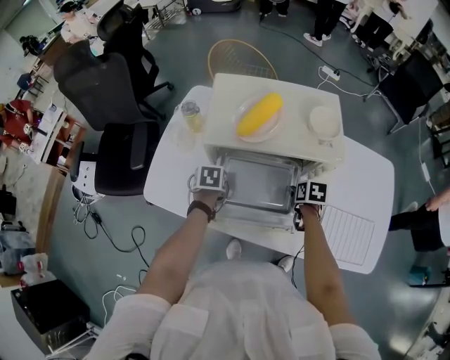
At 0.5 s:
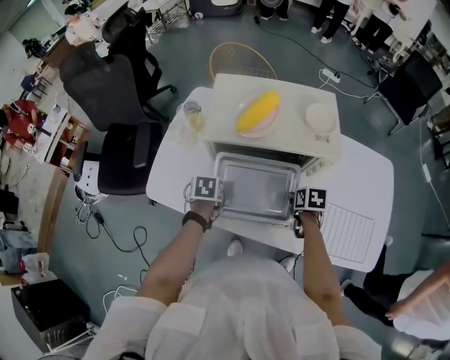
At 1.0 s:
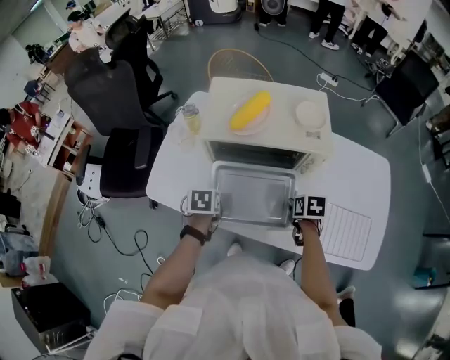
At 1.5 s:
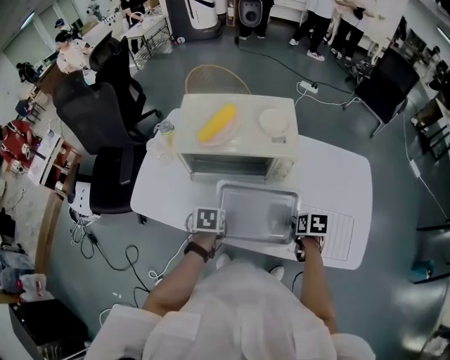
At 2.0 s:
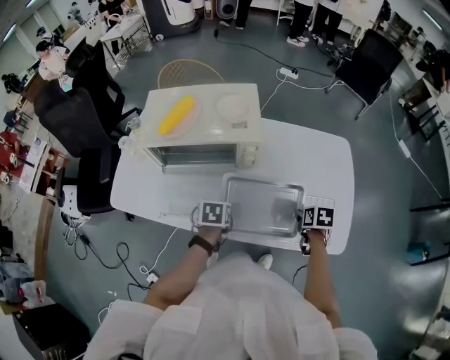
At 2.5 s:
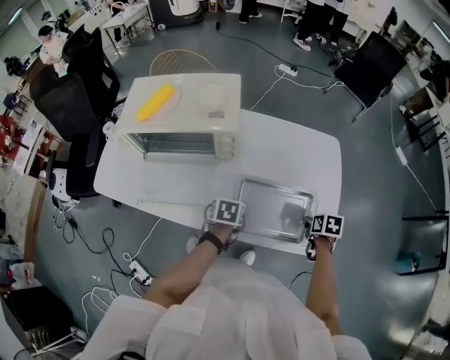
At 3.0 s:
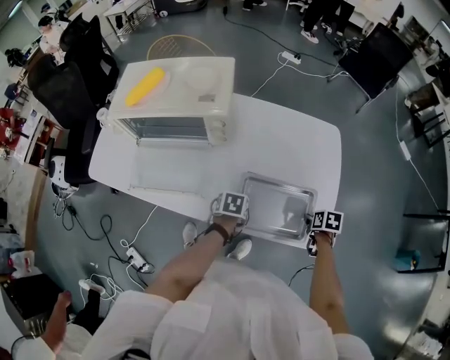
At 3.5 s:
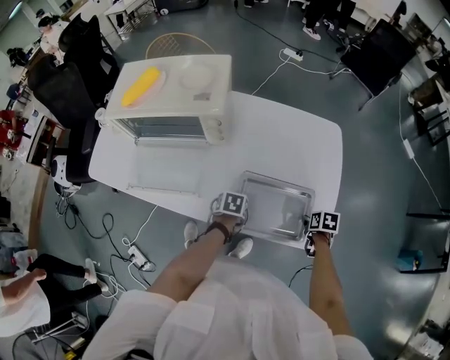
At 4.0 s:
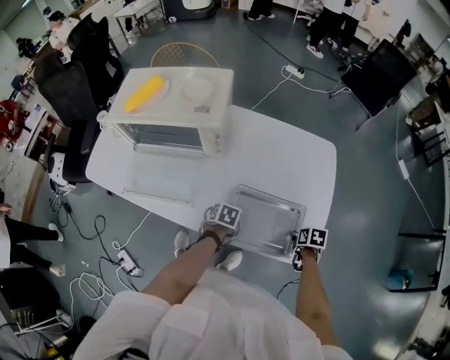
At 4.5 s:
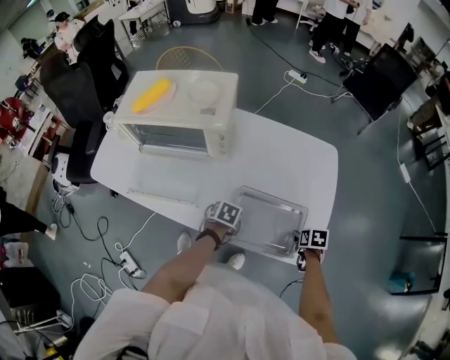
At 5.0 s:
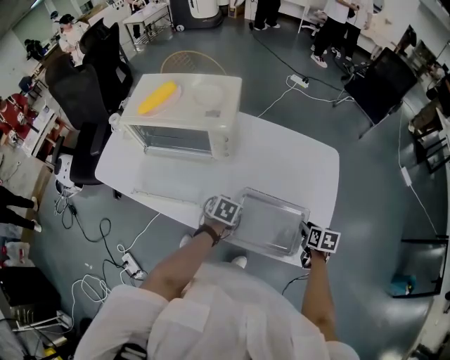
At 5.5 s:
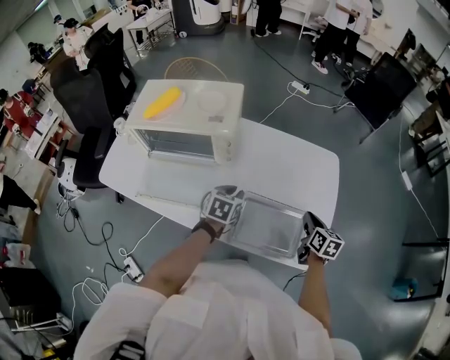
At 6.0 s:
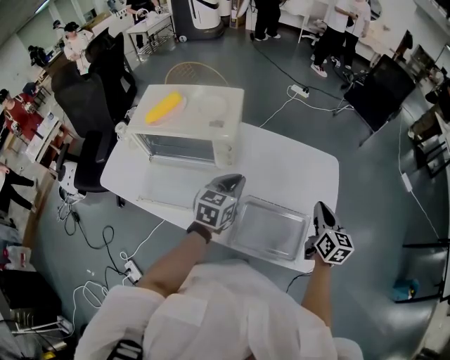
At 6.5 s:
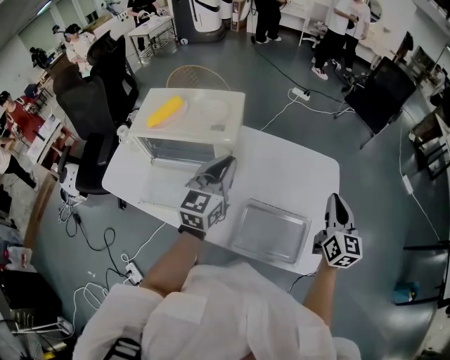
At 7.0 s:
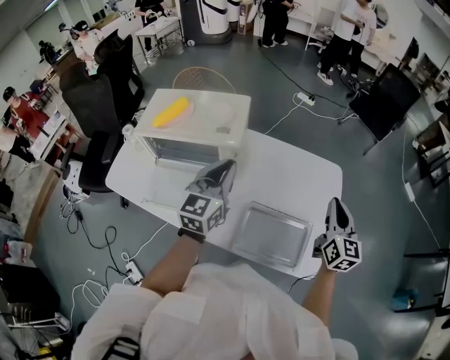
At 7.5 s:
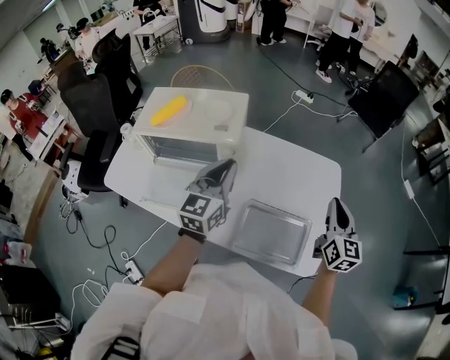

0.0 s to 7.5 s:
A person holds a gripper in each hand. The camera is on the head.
0.0 to 2.0 s: The grippers both shift to the right and backward by roughly 30 cm.
2.0 to 4.0 s: Both grippers travel together to the right and downward, roughly 20 cm.
4.0 to 5.5 s: The grippers both shift upward and forward by roughly 15 cm. The left gripper changes its angle by some 30 degrees; the right gripper points its fingers some 40 degrees further upward.
5.5 to 7.5 s: The grippers both shift upward by about 20 cm. The right gripper changes its angle by about 30 degrees; the left gripper tilts its fingers some 40 degrees upward.

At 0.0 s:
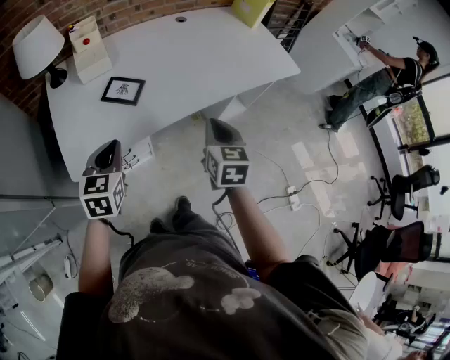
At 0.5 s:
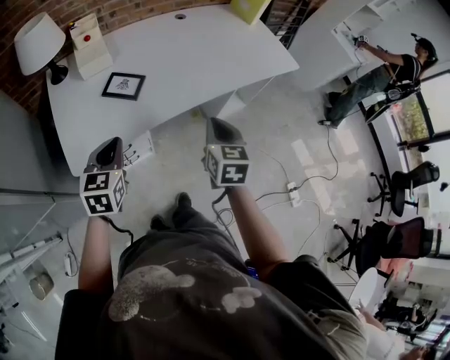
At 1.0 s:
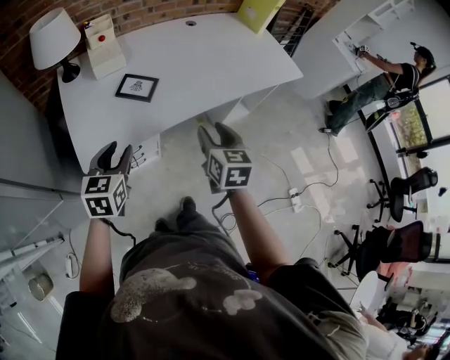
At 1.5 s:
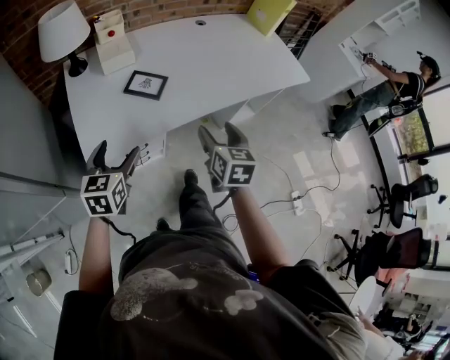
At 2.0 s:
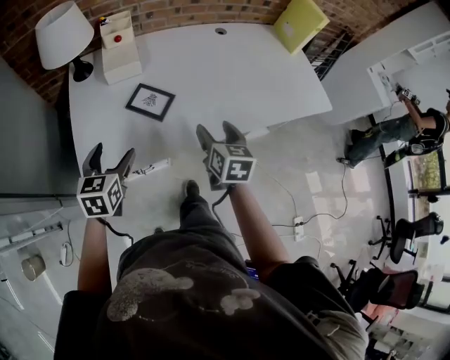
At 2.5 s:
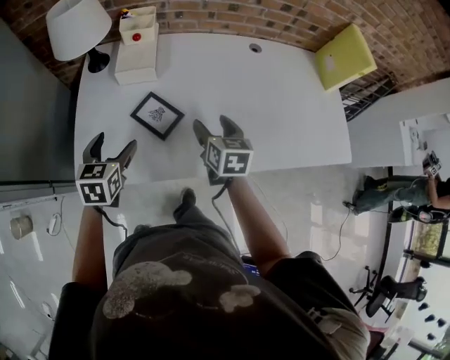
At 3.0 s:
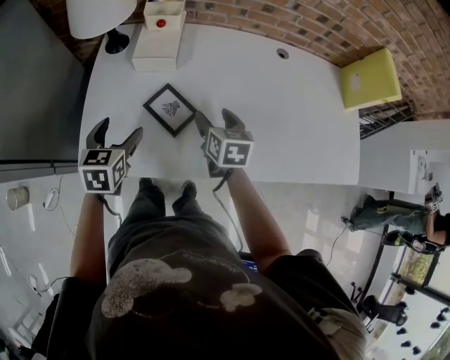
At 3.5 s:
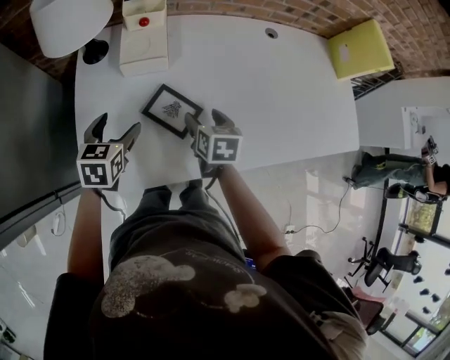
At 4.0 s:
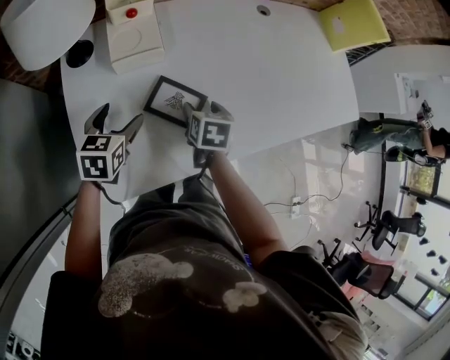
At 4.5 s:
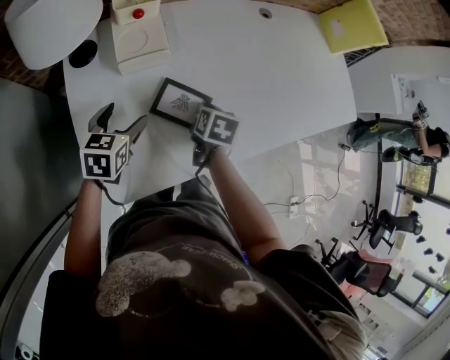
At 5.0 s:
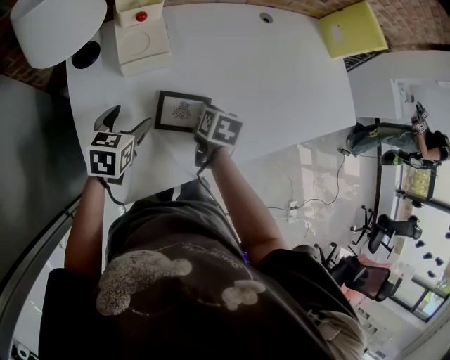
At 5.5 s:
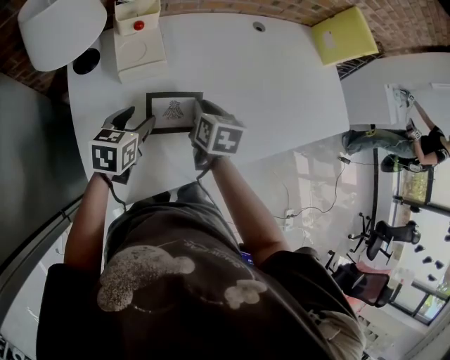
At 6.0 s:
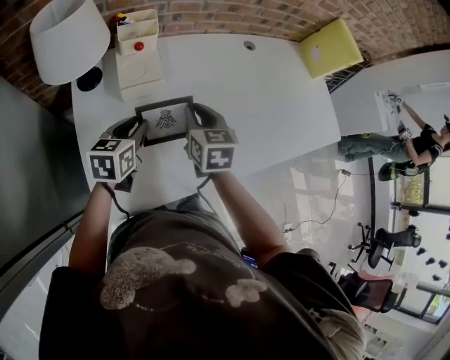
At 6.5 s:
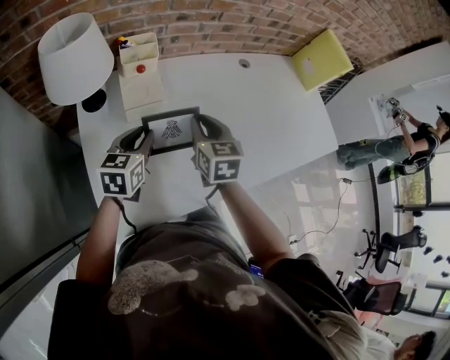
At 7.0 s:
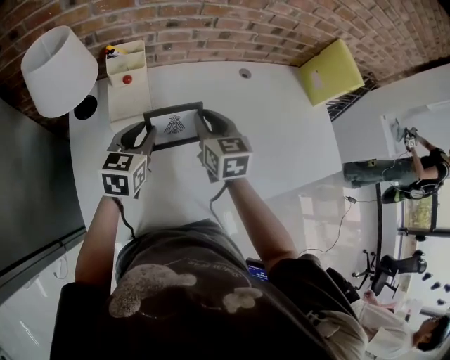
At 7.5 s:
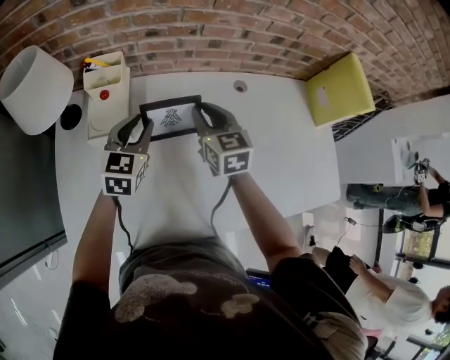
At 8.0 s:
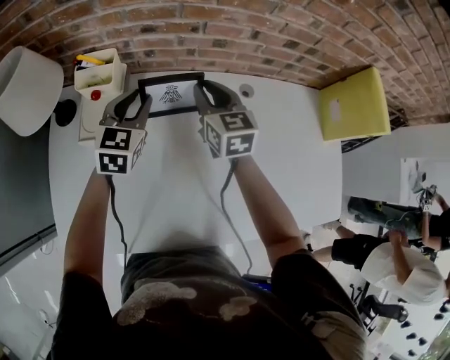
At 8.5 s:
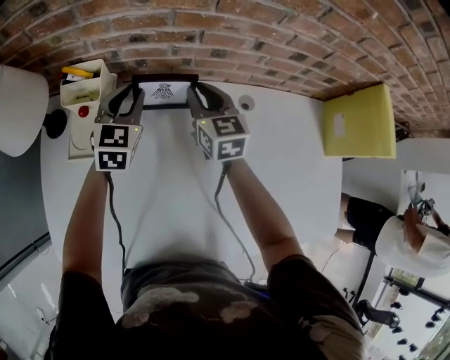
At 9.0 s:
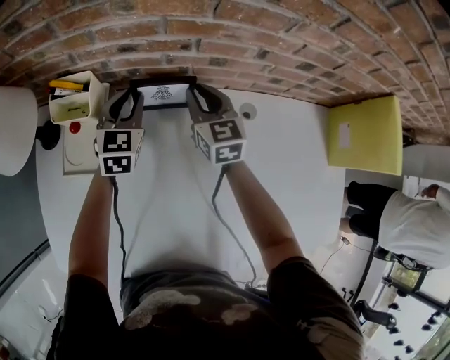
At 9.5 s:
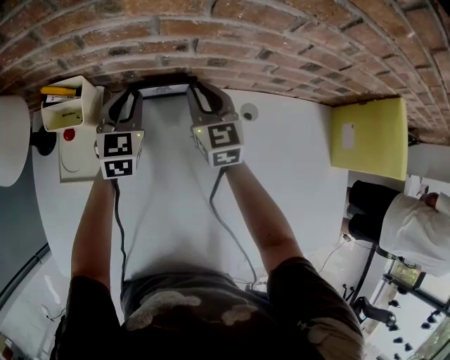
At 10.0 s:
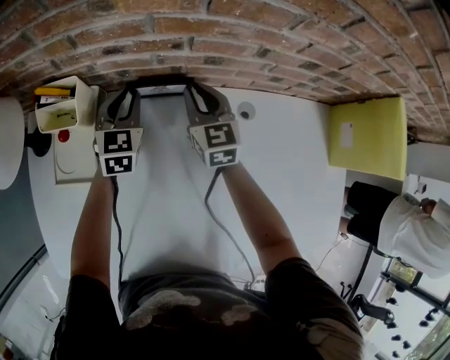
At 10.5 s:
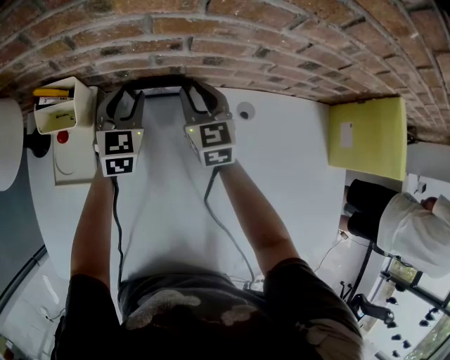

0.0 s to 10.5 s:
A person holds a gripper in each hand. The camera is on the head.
0.0 to 2.0 s: The right gripper goes some 15 cm forward and to the left, and opens up. Meanwhile the left gripper goes some 10 cm to the left and forward, and opens.
2.0 to 4.0 s: The right gripper ends up approximately 25 cm from where it was, and rotates roughly 20 degrees, while the left gripper ends up some 20 cm from where it was.
4.0 to 6.5 s: The right gripper shifts some 15 cm upward, changes its angle by some 30 degrees, and closes its fingers, while the left gripper shifts approximately 10 cm upward, and closes.
6.5 to 8.5 s: The right gripper moves some 30 cm, and rotates some 30 degrees, while the left gripper shifts by roughly 30 cm, and changes its angle by approximately 30 degrees.
8.5 to 10.5 s: The left gripper goes approximately 10 cm downward and forward. Meanwhile the right gripper shifts roughly 5 cm forward and downward.

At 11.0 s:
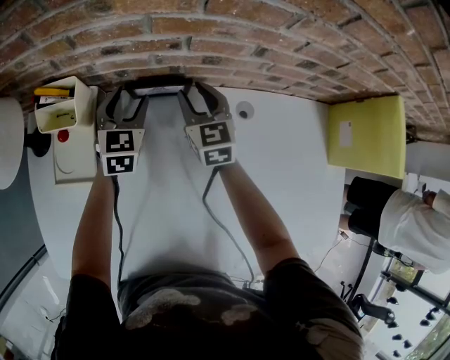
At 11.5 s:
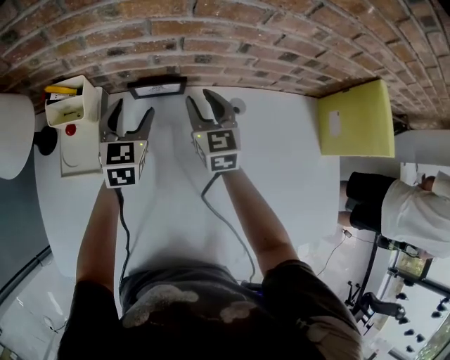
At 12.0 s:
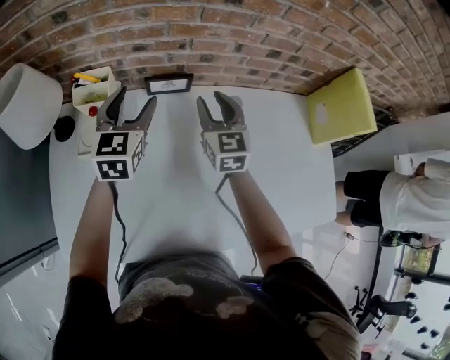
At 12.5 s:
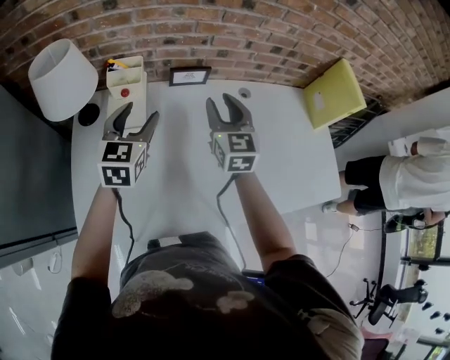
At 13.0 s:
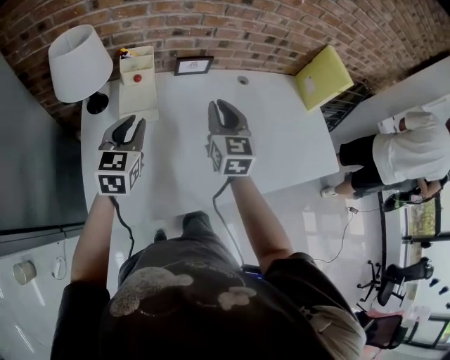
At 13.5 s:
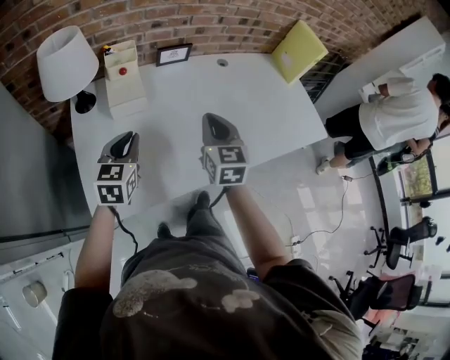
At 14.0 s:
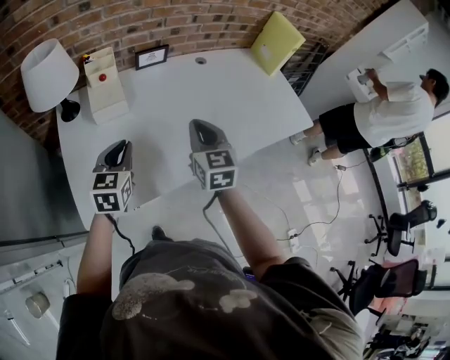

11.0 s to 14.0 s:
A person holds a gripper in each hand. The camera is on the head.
11.0 to 12.5 s: The two grippers go about 25 cm backward and upward.
12.5 to 14.0 s: Both grippers move backward, approximately 25 cm. The right gripper closes its fingers; the left gripper closes up.

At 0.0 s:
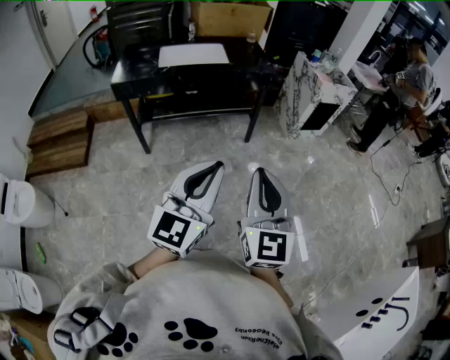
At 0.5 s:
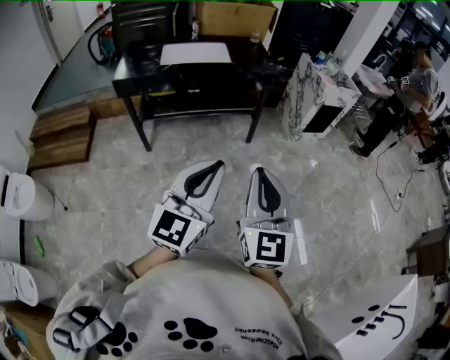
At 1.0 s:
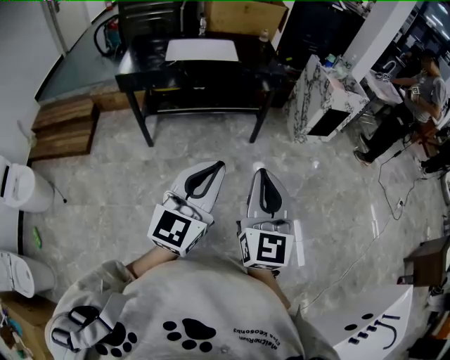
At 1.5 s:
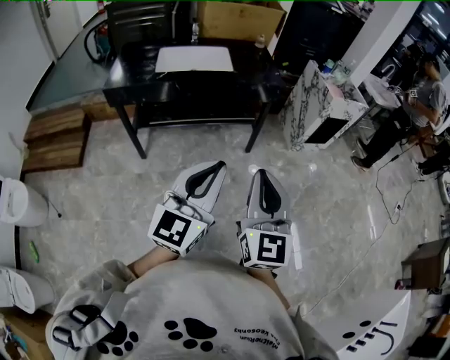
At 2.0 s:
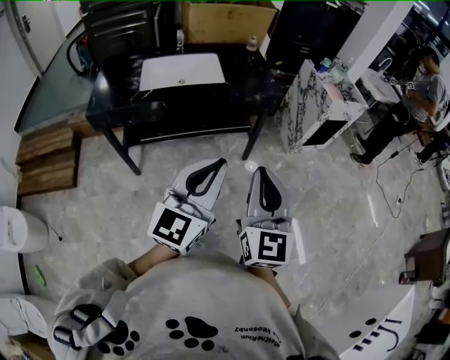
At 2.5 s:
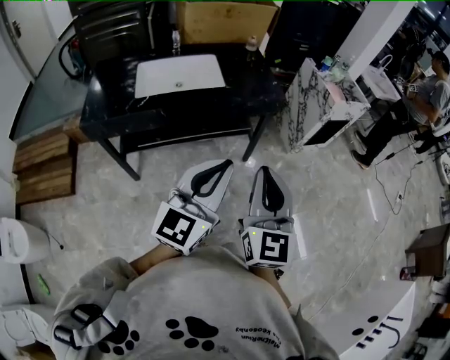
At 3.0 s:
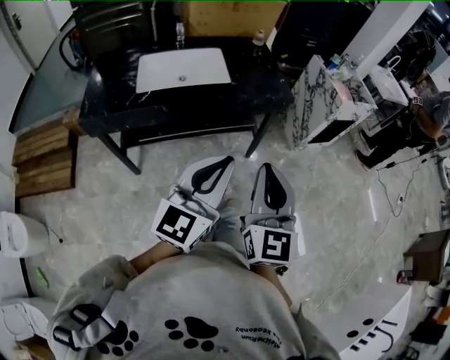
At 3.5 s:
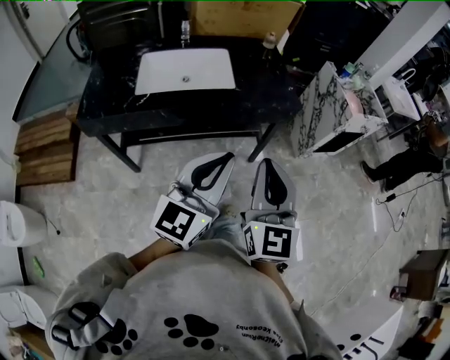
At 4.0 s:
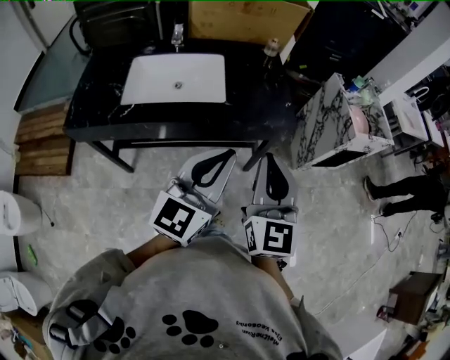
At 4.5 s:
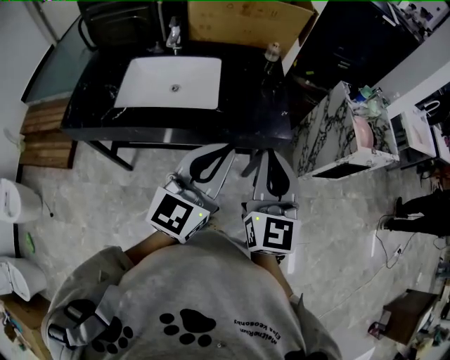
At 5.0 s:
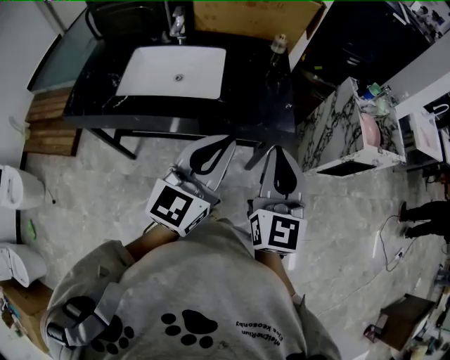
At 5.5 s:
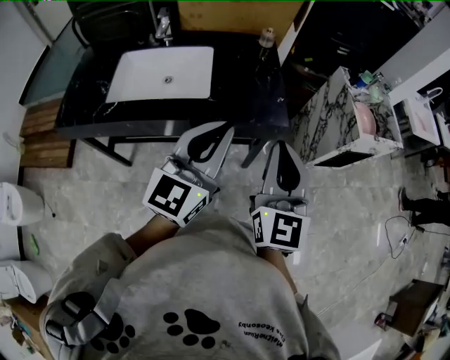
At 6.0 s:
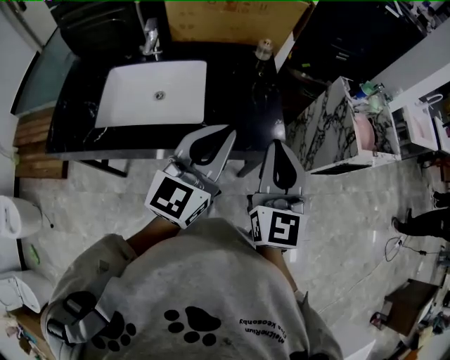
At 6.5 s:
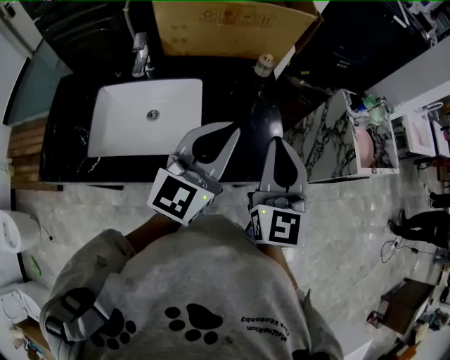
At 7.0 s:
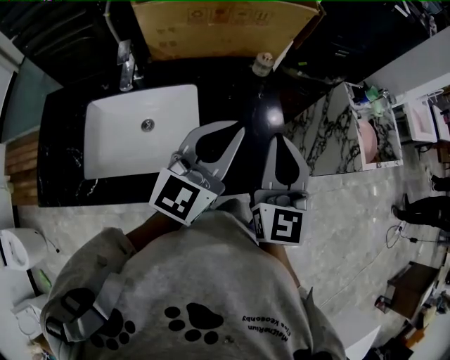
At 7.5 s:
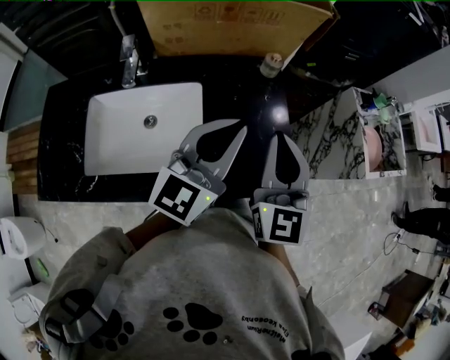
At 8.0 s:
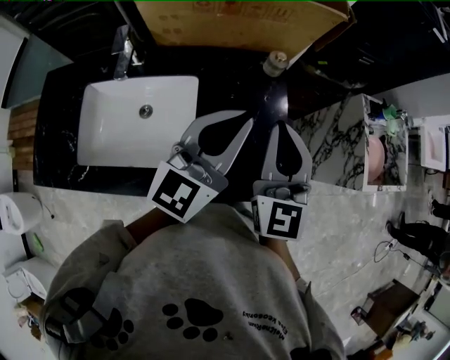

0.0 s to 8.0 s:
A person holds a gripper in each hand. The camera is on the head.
0.0 to 2.0 s: Both grippers travel together forward, approximately 25 cm.
2.0 to 4.0 s: Both grippers move forward, roughly 30 cm.
4.0 to 6.0 s: The grippers both shift forward by some 20 cm.
6.0 to 8.0 s: The two grippers go about 25 cm forward.
